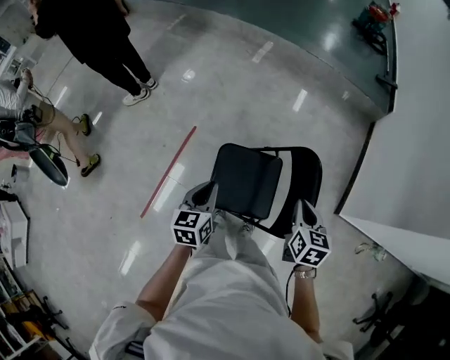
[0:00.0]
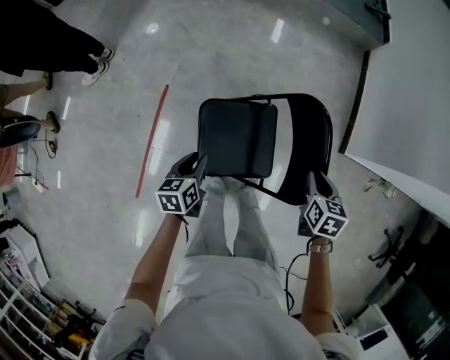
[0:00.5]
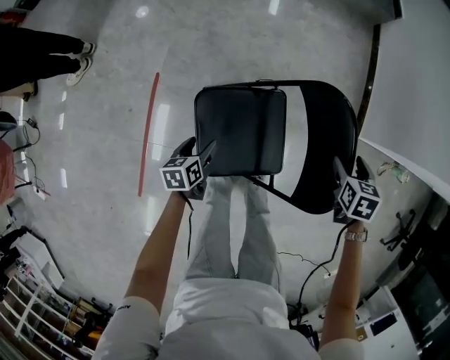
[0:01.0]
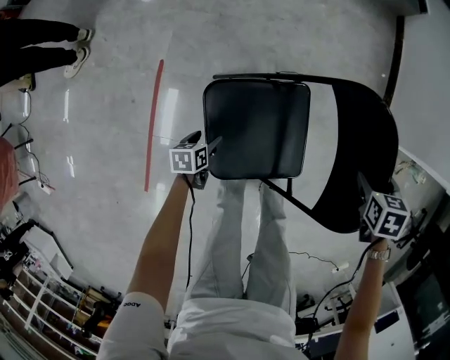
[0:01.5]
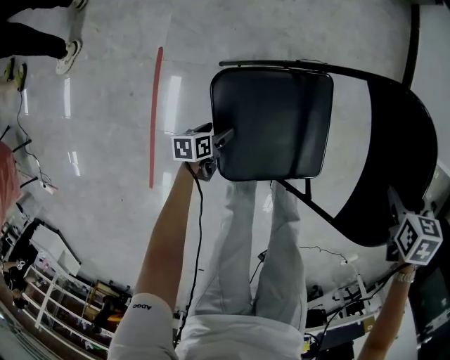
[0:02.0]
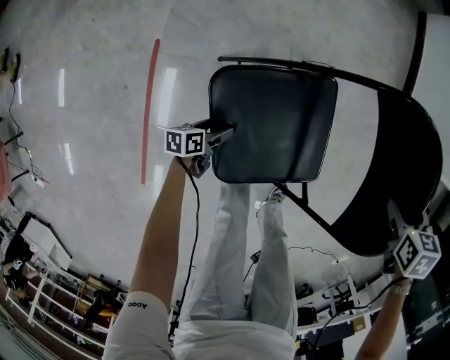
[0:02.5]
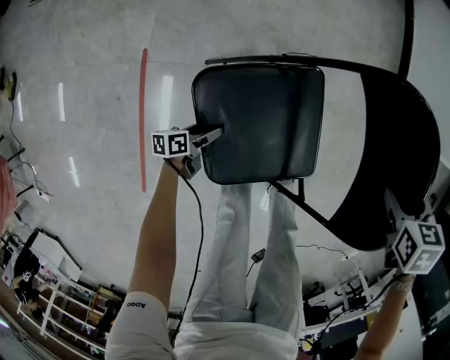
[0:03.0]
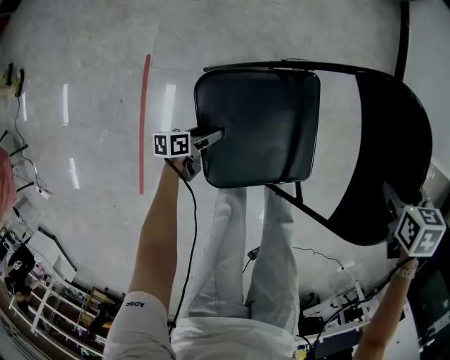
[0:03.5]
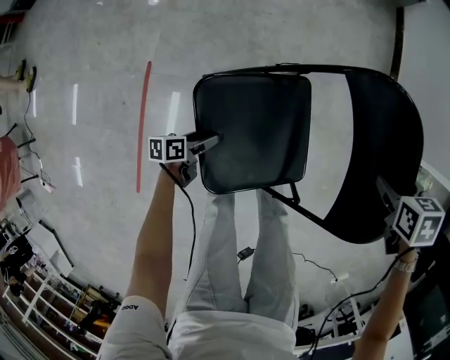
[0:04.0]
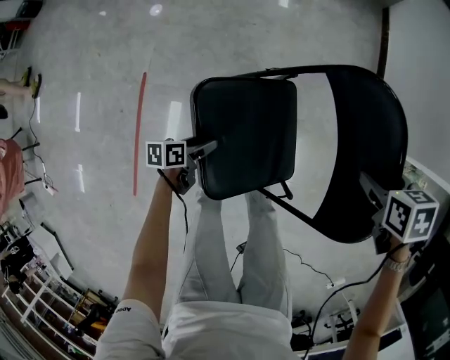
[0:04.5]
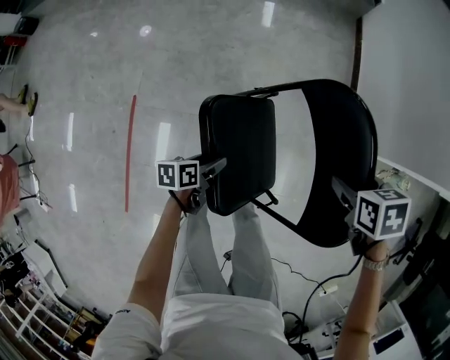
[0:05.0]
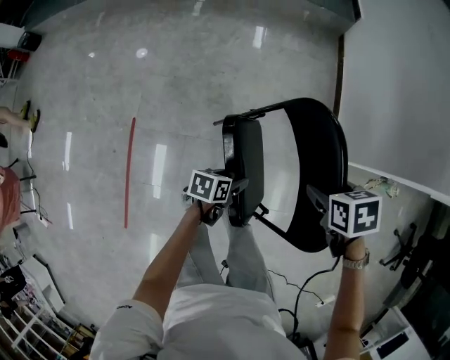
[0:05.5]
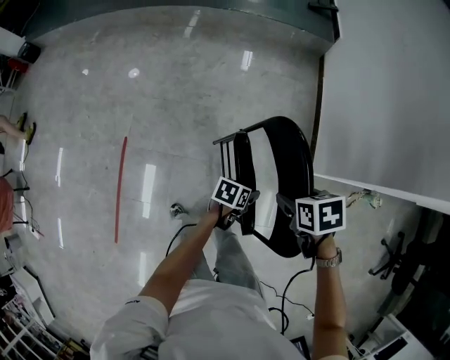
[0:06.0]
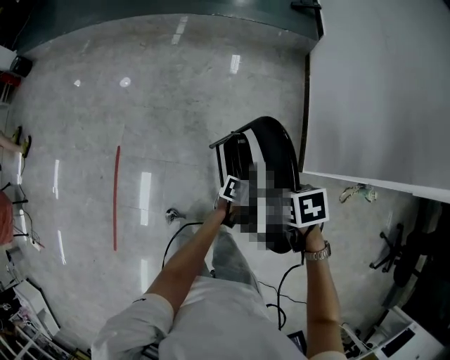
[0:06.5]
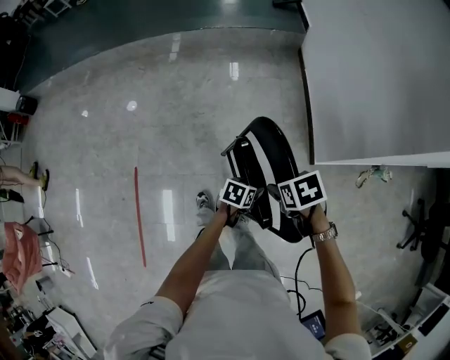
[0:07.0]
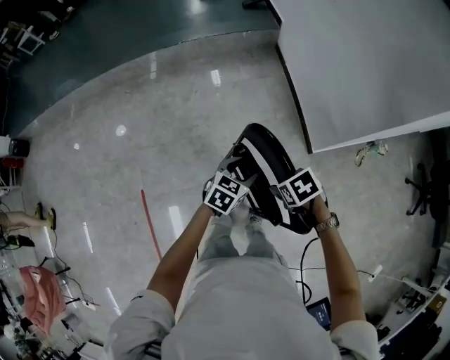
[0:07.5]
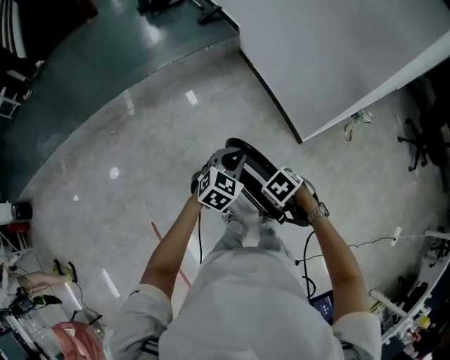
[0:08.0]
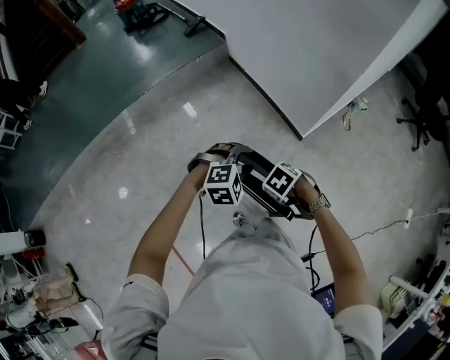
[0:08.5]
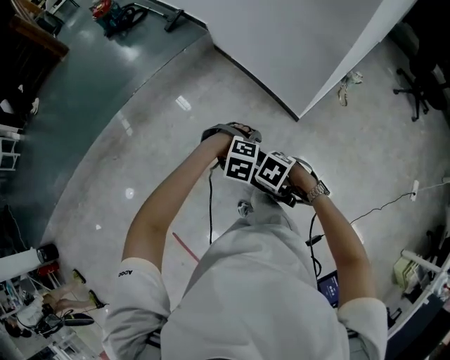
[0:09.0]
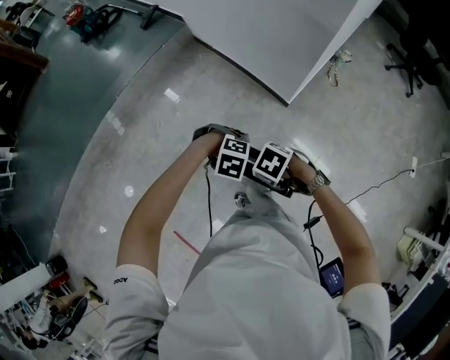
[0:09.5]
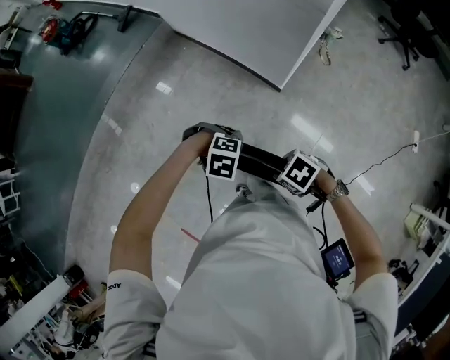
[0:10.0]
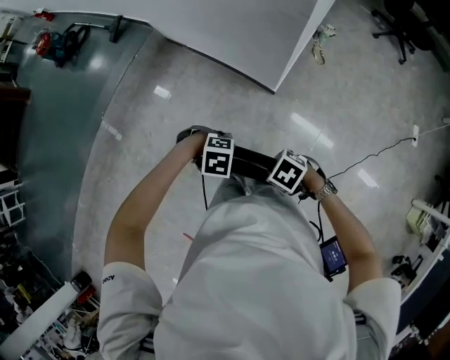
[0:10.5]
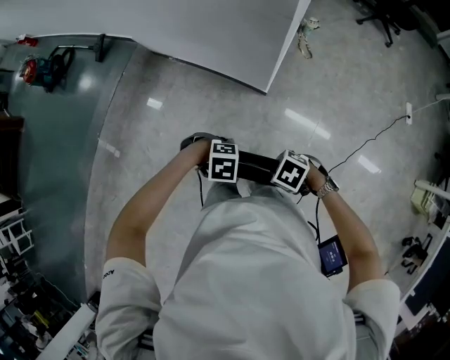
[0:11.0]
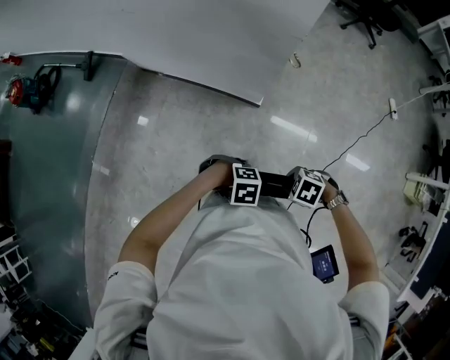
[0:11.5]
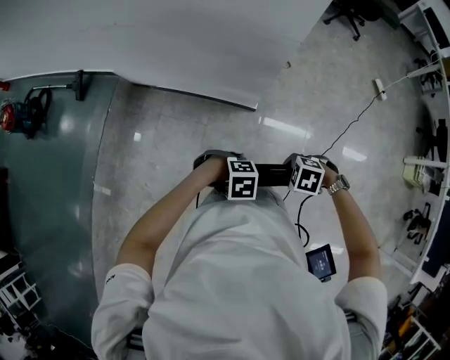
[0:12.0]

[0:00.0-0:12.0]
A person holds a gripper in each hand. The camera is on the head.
0:00.0 to 0:02.0: The left gripper is displaced downward by roughly 60 cm, rotates some 50 degrees, and opens up. The right gripper goes approximately 30 cm downward, points its fingers approximately 40 degrees further downward, and opens.
0:02.0 to 0:04.0: The left gripper shifts by some 15 cm. The right gripper changes place by some 15 cm.
0:04.0 to 0:06.0: The right gripper goes approximately 15 cm upward, while the left gripper ends up roughly 50 cm from where it was, and rotates about 30 degrees.
0:06.0 to 0:08.0: The left gripper travels upward by approximately 25 cm, rolls clockwise, seen from behind, by some 70 degrees, and closes. The right gripper changes place by some 10 cm.
0:08.0 to 0:10.0: The right gripper shifts by roughly 10 cm, and changes its angle by roughly 20 degrees; the left gripper changes place by approximately 15 cm, points its fingers about 40 degrees further downward, and opens and closes again.
0:10.0 to 0:12.0: The left gripper shifts by approximately 10 cm, while the right gripper moves roughly 15 cm, and closes its fingers.

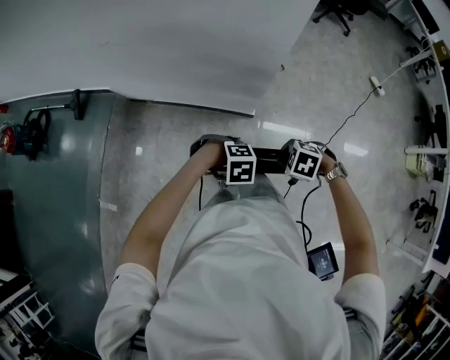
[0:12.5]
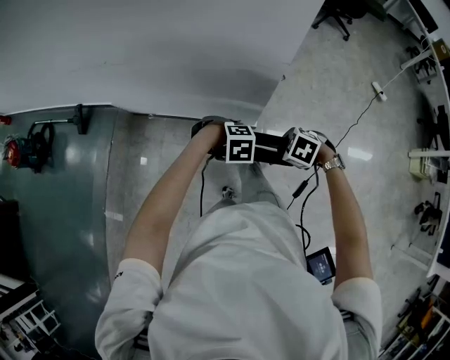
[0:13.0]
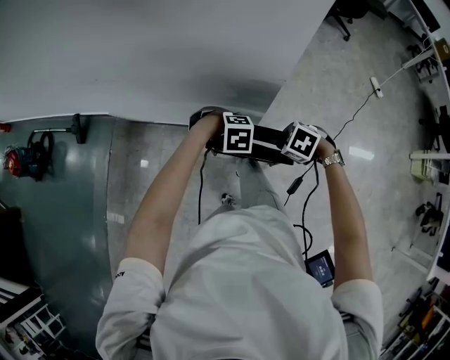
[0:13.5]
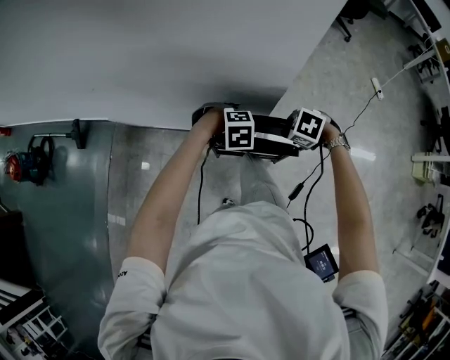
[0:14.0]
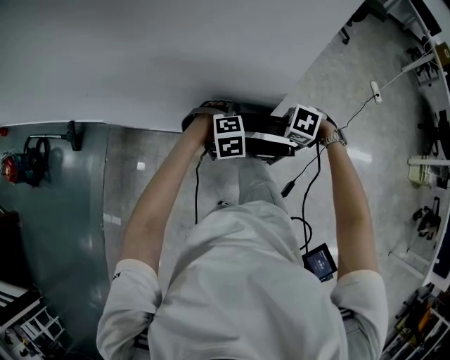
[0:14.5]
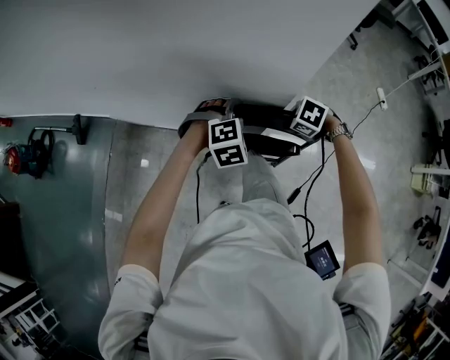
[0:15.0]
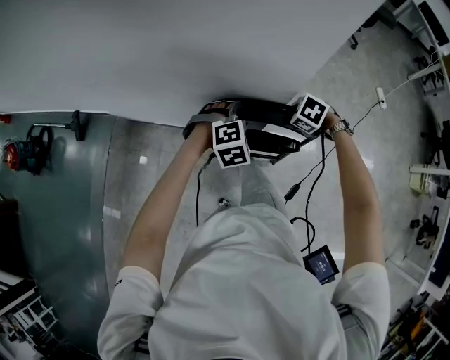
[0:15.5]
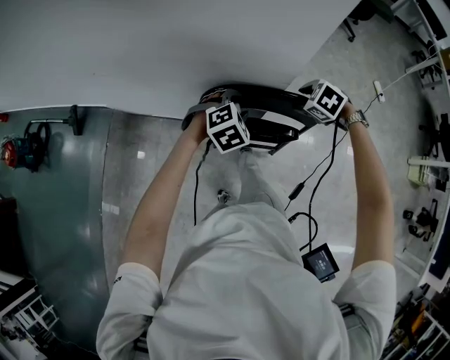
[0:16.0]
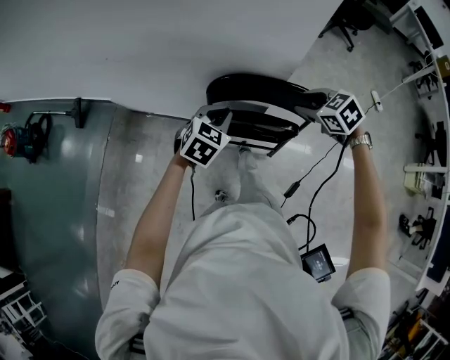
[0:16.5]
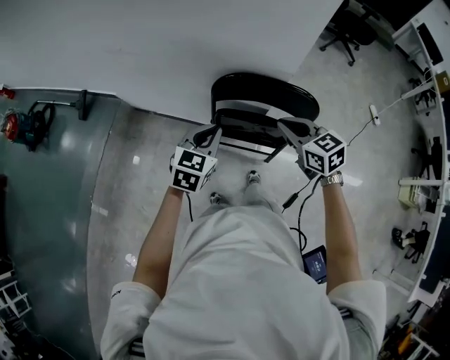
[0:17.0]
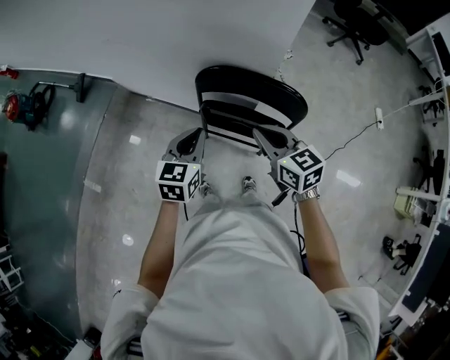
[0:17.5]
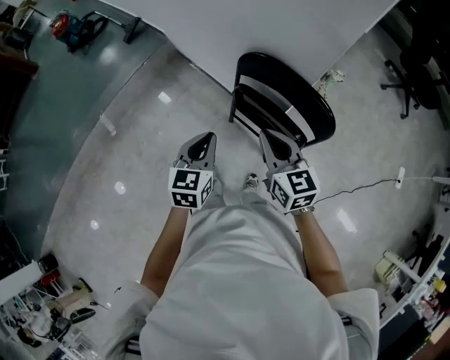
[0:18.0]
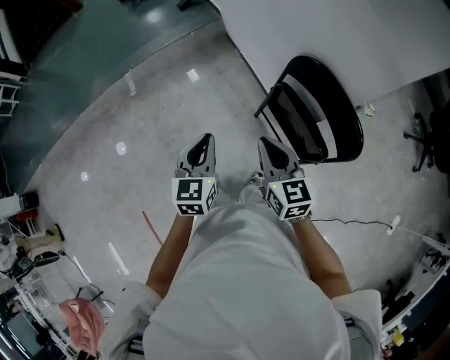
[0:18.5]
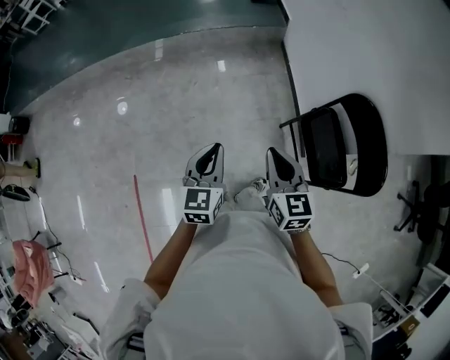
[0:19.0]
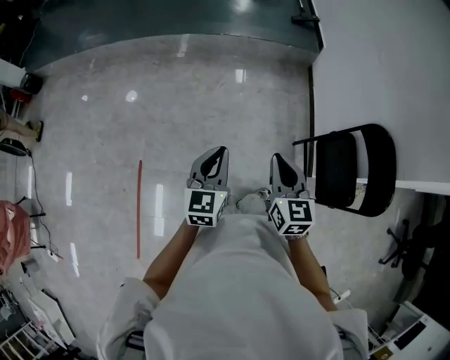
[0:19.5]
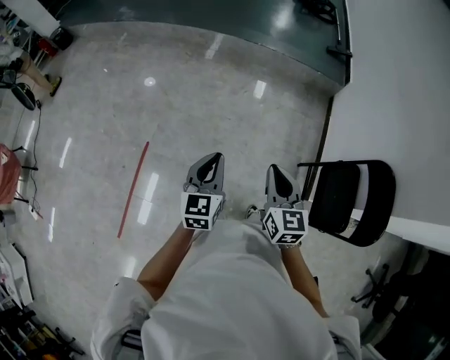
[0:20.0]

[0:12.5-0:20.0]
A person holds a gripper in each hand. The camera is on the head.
0:12.5 to 0:14.5: The left gripper ends up approximately 30 cm from where it was, rotates approximately 20 degrees, and opens up, while the right gripper ends up some 30 cm from where it was.
0:14.5 to 0:16.5: The right gripper heads upward, covering roughly 10 cm, rotates roughly 30 degrees, and opens its fingers. Meanwhile the left gripper moves roughly 15 cm, twists approximately 50 degrees counterclockwise, seen from behind, and closes.
0:16.5 to 0:18.0: The right gripper shifts by some 15 cm, tilts its fingers roughly 40 degrees upward, and closes. Meanwhile the left gripper moves about 15 cm, and turns by approximately 60 degrees.
0:18.0 to 0:20.0: The pair of grippers is taken some 50 cm. The right gripper changes its angle by roughly 50 degrees, while the left gripper swivels some 70 degrees.

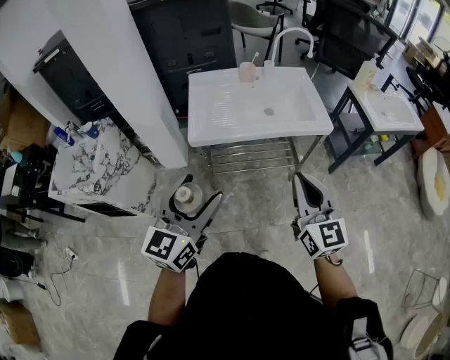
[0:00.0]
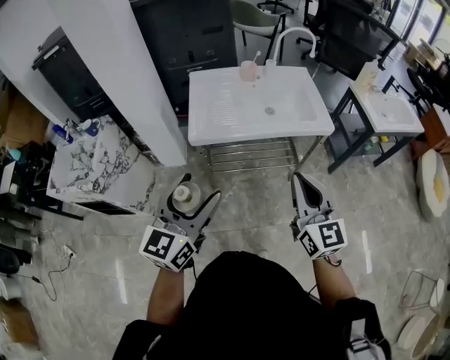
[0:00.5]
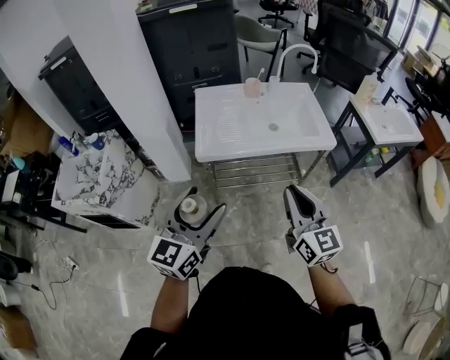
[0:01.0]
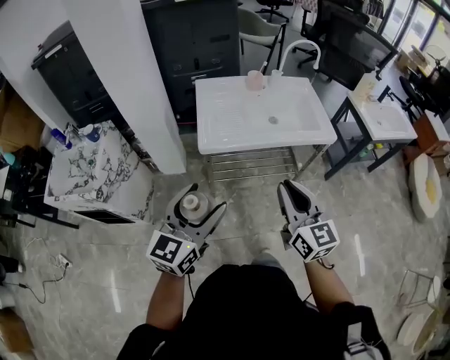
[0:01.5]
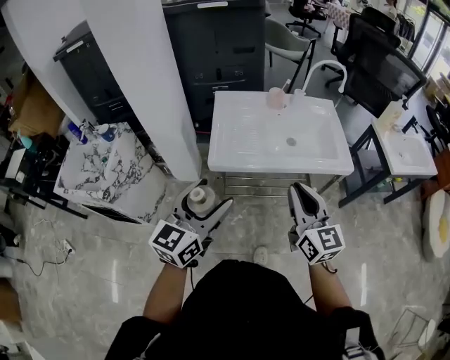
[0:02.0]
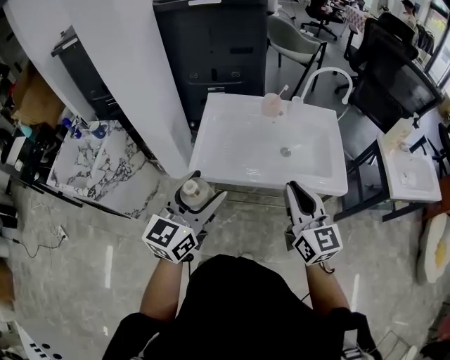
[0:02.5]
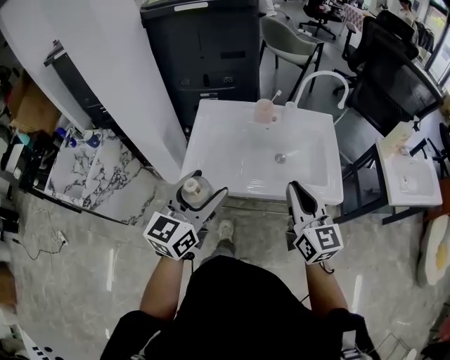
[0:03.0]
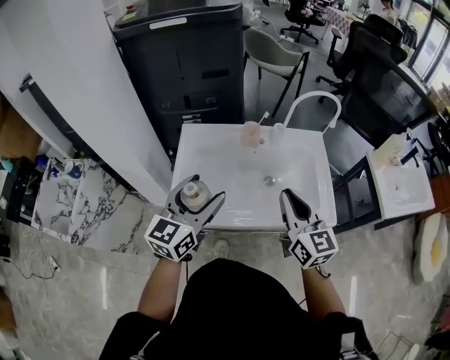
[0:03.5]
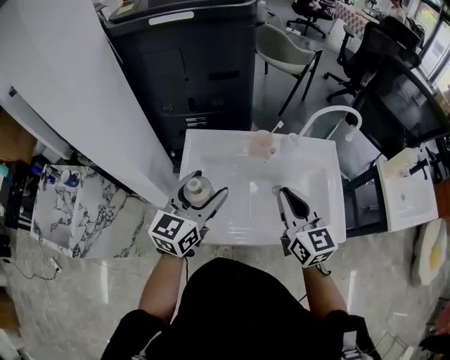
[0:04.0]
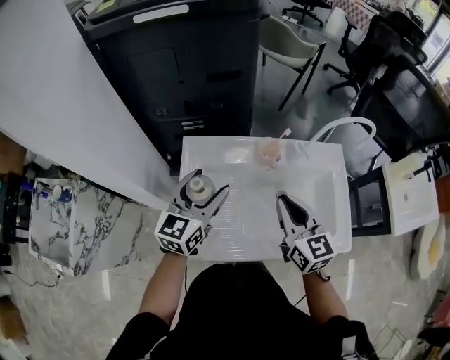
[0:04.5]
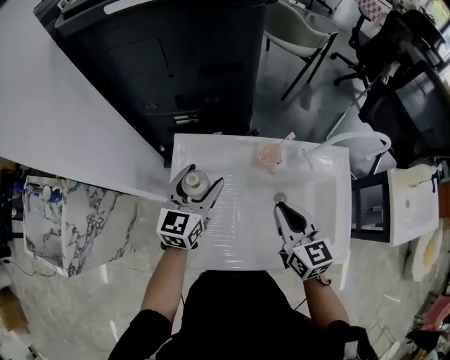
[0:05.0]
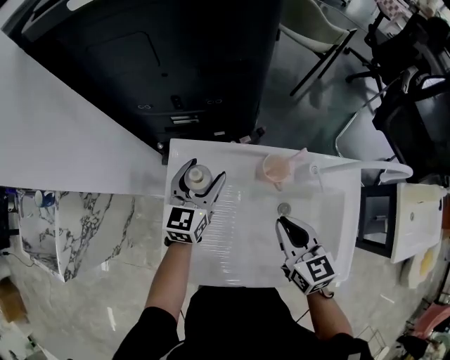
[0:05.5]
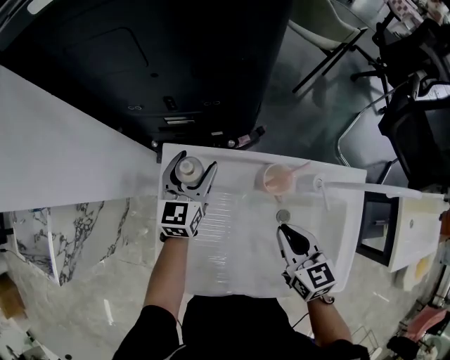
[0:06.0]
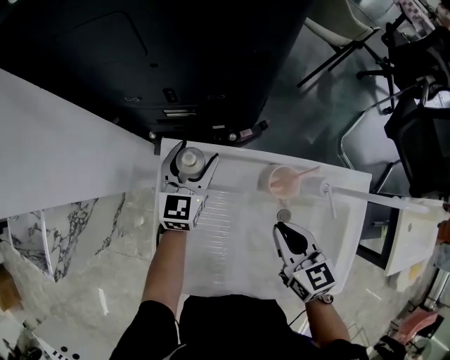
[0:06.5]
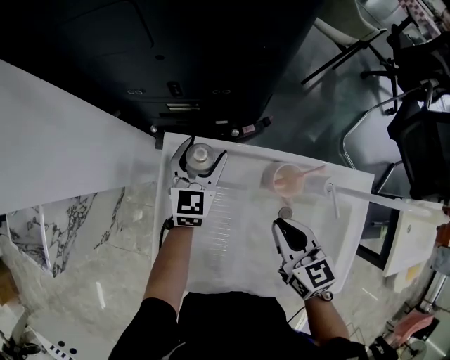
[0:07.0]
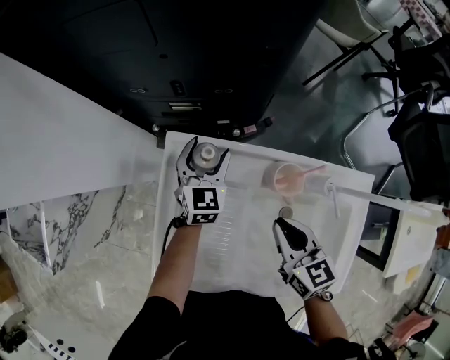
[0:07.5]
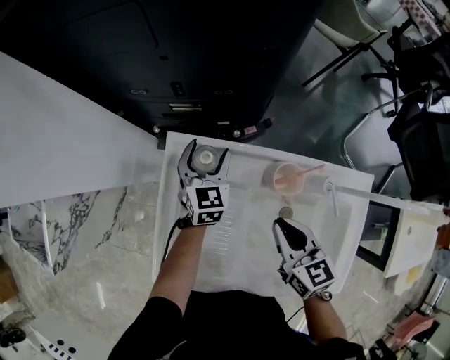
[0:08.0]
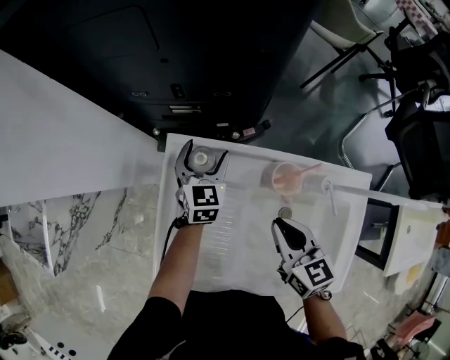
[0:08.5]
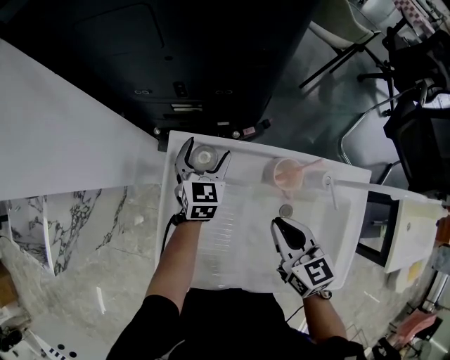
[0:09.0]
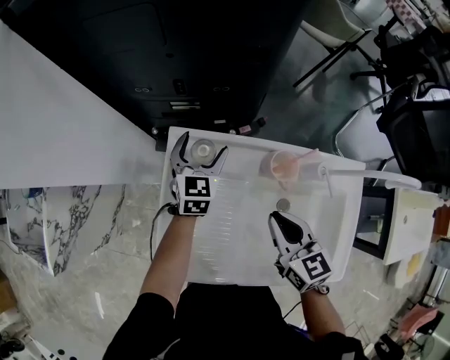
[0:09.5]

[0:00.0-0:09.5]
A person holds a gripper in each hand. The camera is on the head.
0:00.0 to 0:02.0: The right gripper goes some 10 cm forward and to the left. Meanwhile the left gripper is displaced forward by approximately 10 cm.
0:02.0 to 0:04.0: Both grippers move forward, about 35 cm.
0:04.0 to 0:05.5: The right gripper goes approximately 15 cm downward and forward, and changes its angle by some 20 degrees. Meanwhile the left gripper heads forward and downward, covering roughly 25 cm.
0:05.5 to 0:07.5: The left gripper is displaced downward and forward by roughly 10 cm, and turns by approximately 20 degrees.
0:07.5 to 0:09.5: The grippers make only small movements.
